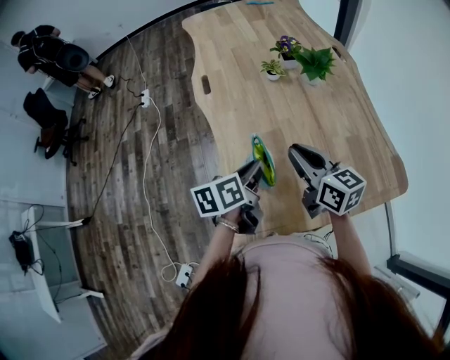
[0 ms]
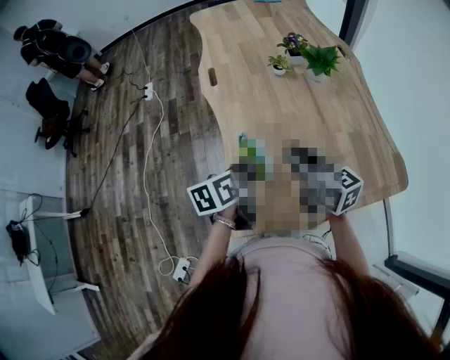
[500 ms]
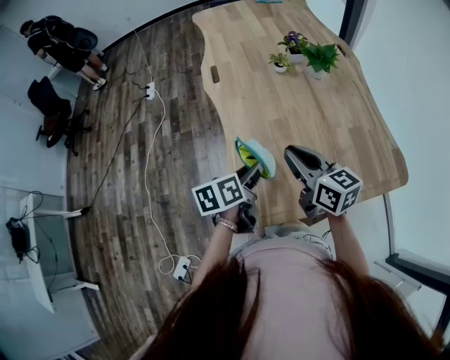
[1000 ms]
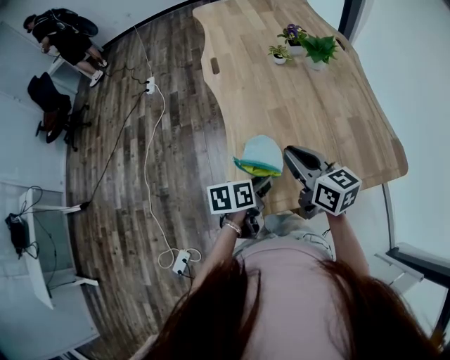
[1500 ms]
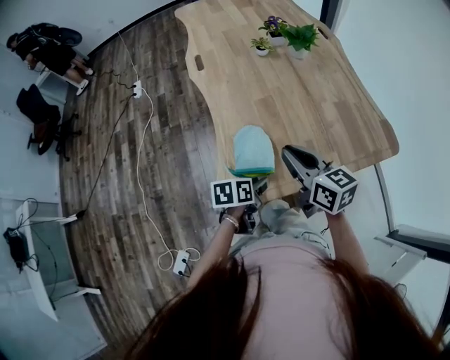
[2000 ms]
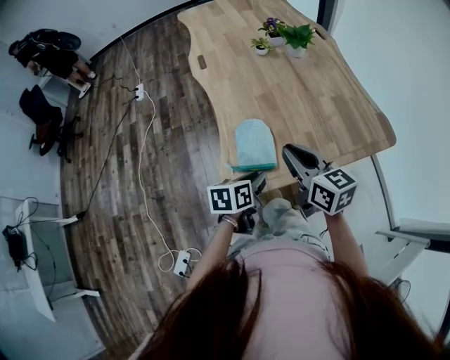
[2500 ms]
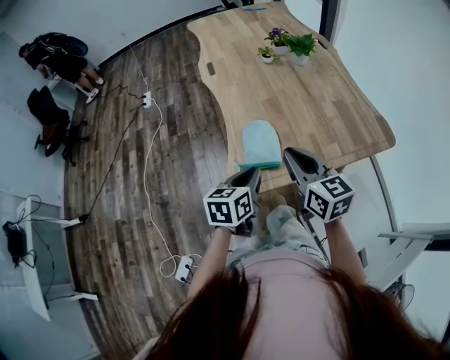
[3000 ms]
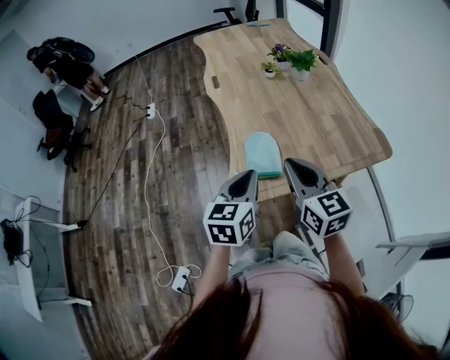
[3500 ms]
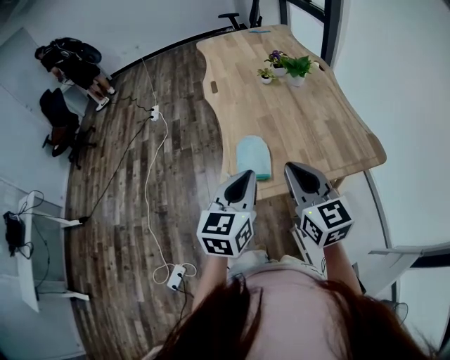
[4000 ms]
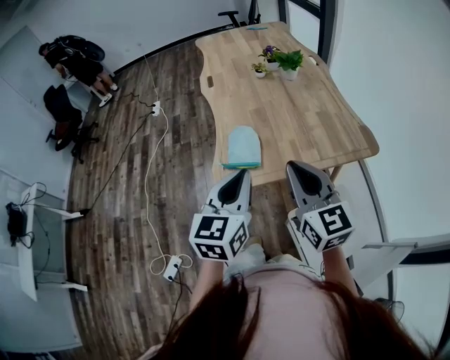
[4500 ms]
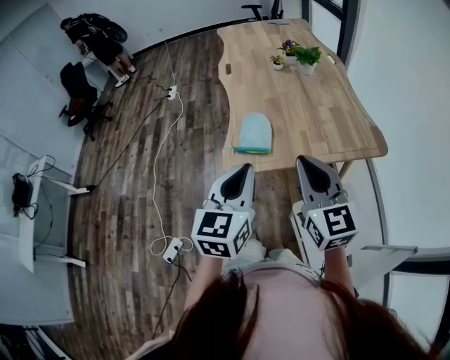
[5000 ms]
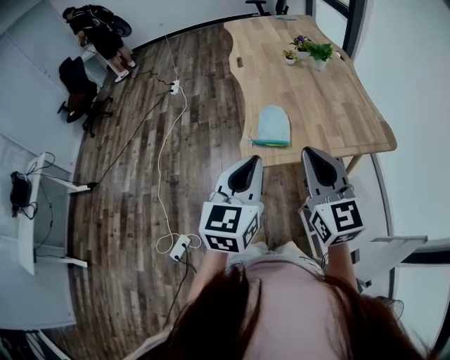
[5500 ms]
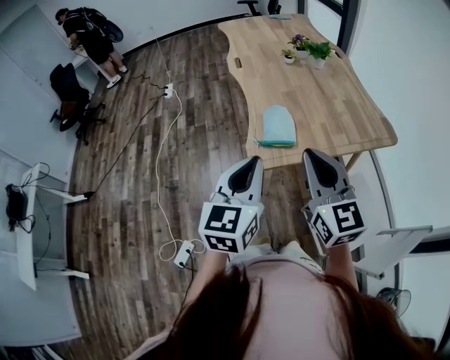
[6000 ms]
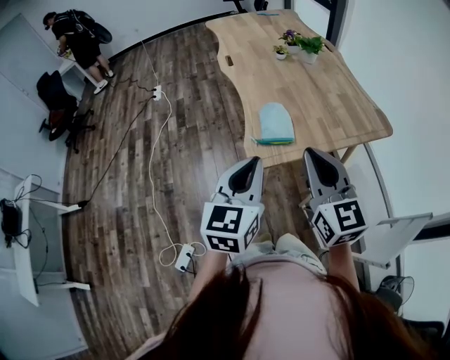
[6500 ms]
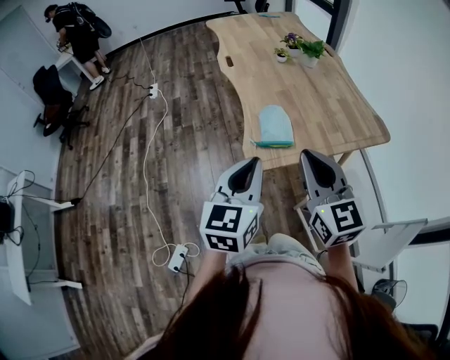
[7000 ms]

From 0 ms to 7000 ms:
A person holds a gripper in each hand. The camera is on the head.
From 0 ms to 2000 ms: The right gripper travels backward by about 15 cm. The left gripper heads backward and downward, covering approximately 20 cm, changes its angle by approximately 20 degrees, and opens its fingers.
From 2000 ms to 3500 ms: The left gripper is displaced upward by roughly 20 cm, changes its angle by approximately 50 degrees, and closes its fingers, while the right gripper shifts approximately 15 cm backward and upward, and swivels approximately 20 degrees.
From 3500 ms to 5000 ms: The left gripper is displaced backward, upward and to the right by roughly 20 cm. The right gripper travels backward, to the right and upward by about 15 cm.
From 5000 ms to 7000 ms: Both grippers move to the left, roughly 15 cm.

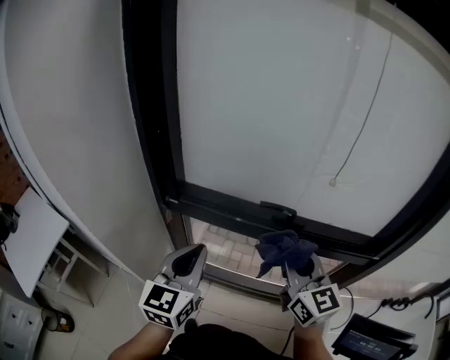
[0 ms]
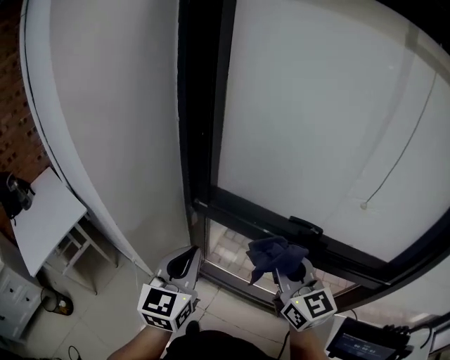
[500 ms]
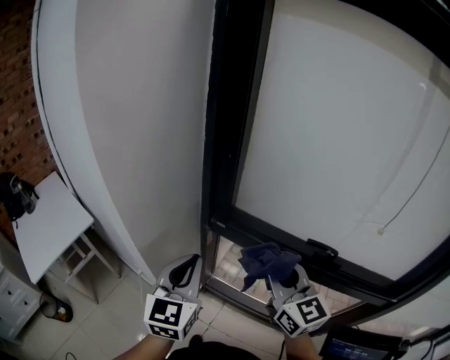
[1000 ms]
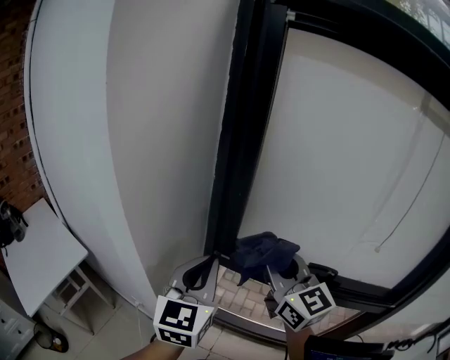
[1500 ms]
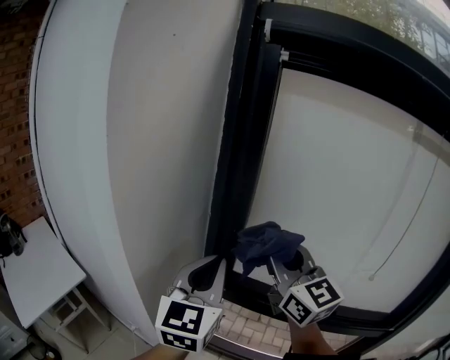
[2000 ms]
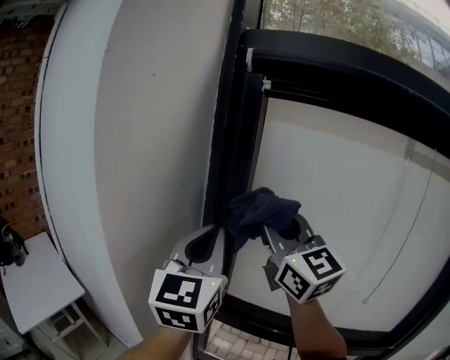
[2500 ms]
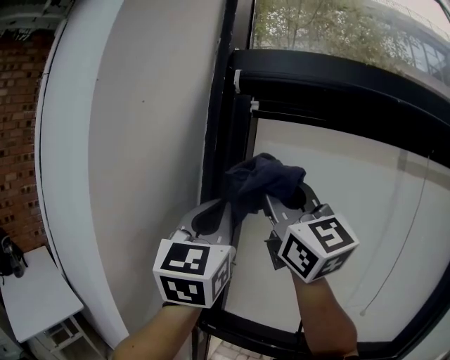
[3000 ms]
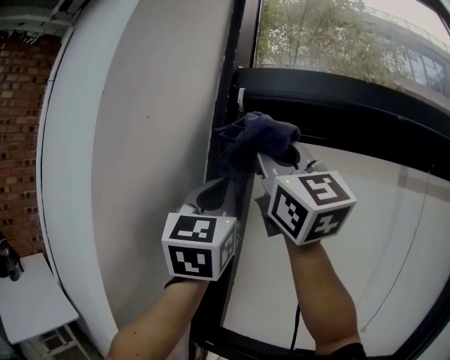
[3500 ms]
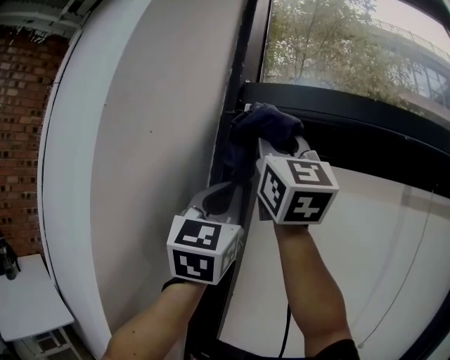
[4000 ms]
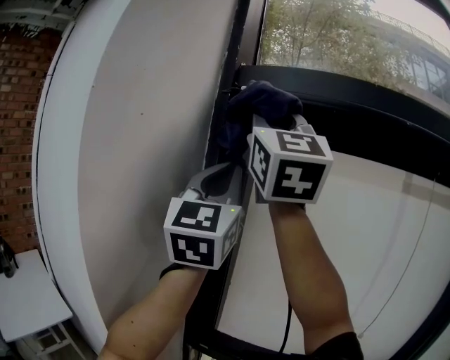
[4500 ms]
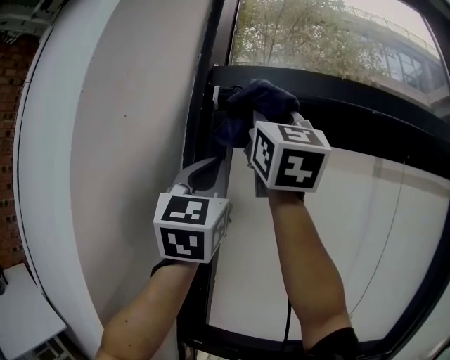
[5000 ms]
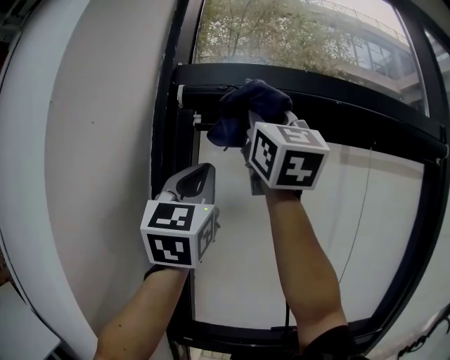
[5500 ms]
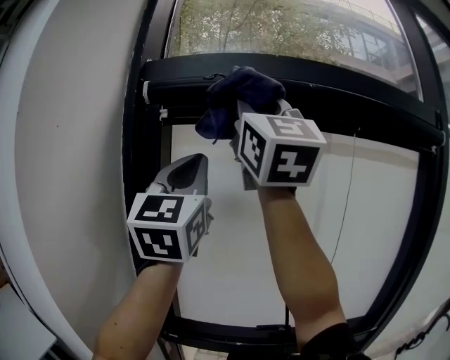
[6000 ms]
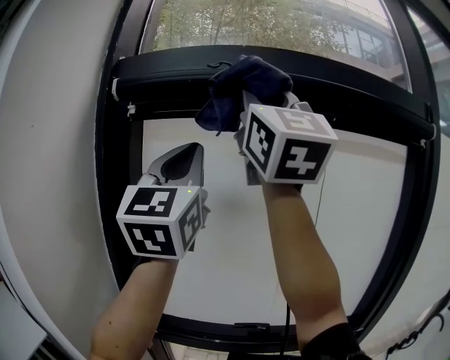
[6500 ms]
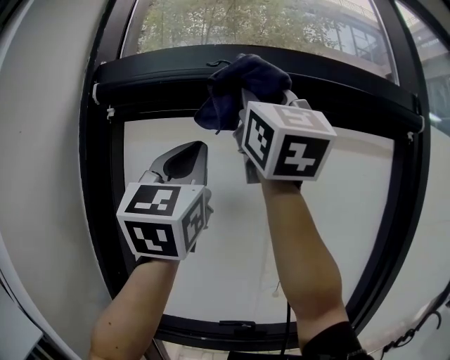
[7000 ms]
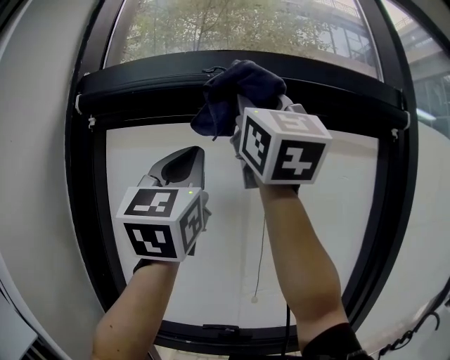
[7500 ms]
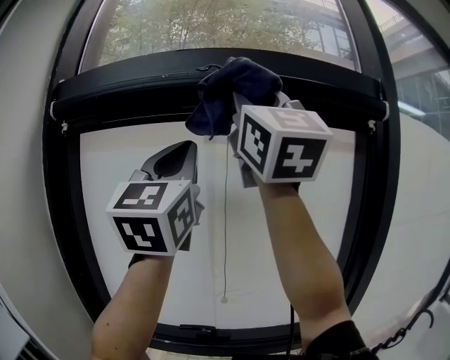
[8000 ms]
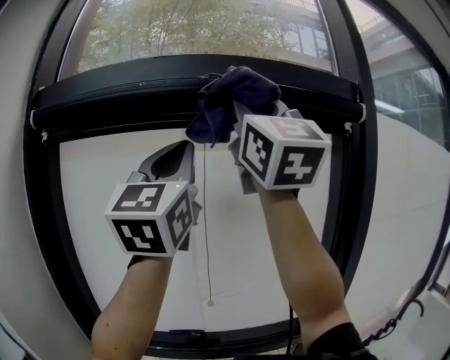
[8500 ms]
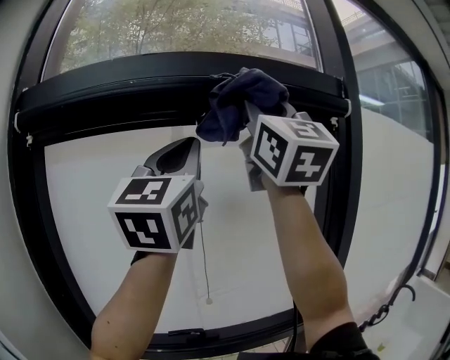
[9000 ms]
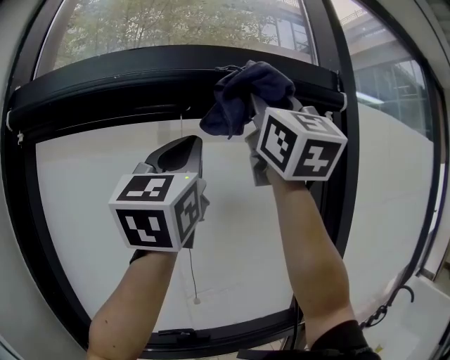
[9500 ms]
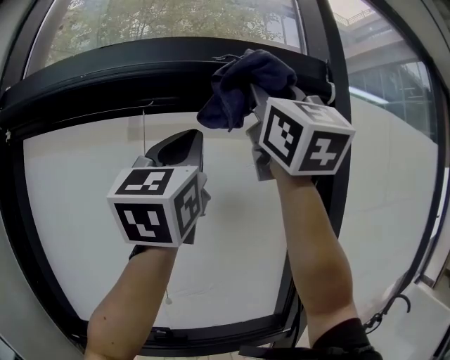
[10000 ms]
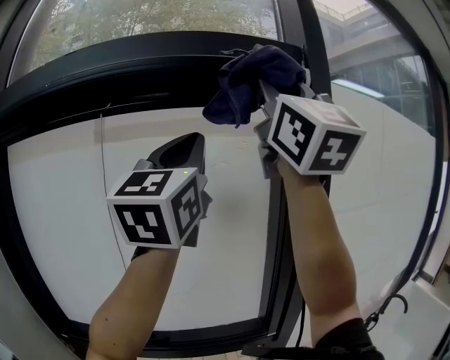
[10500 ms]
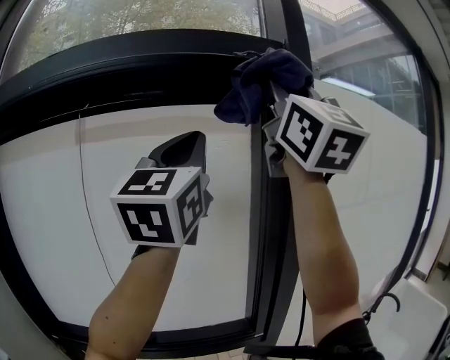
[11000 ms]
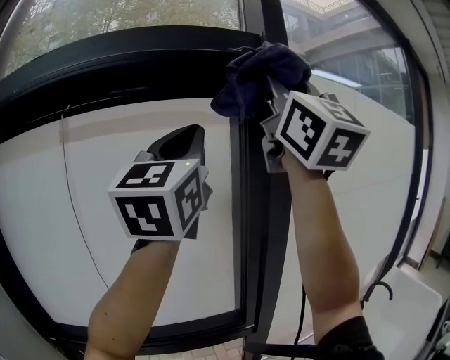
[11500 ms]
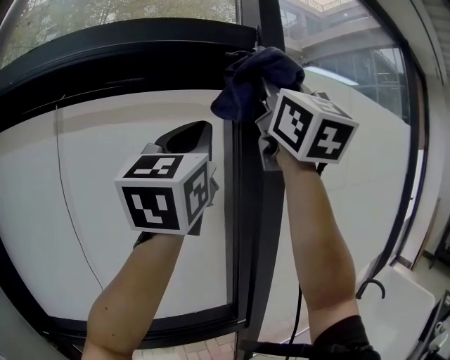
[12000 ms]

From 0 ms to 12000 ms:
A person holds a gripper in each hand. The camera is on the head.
From 0 ms to 2000 ms: The left gripper goes approximately 25 cm upward, to the left and forward. The right gripper is displaced to the left, upward and forward by approximately 35 cm, and swivels roughly 20 degrees.
From 2000 ms to 4000 ms: The grippers both shift upward by some 35 cm. The right gripper rotates some 40 degrees. Meanwhile the left gripper changes its angle by about 30 degrees.
From 4000 ms to 6000 ms: The two grippers go roughly 15 cm to the right.
From 6000 ms to 8000 ms: The grippers both shift to the right by about 25 cm.
From 8000 ms to 10000 ms: The two grippers go about 20 cm to the right.
From 10000 ms to 12000 ms: Both grippers move to the right, roughly 15 cm.

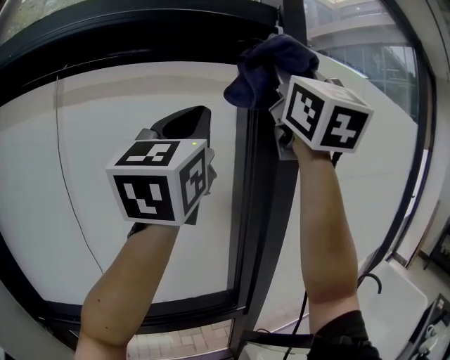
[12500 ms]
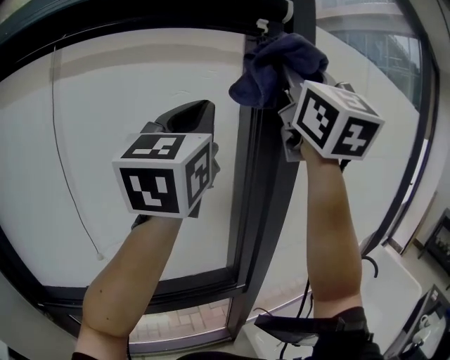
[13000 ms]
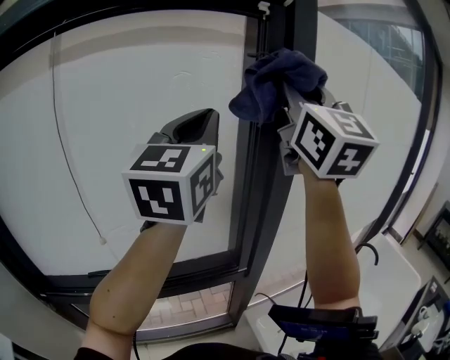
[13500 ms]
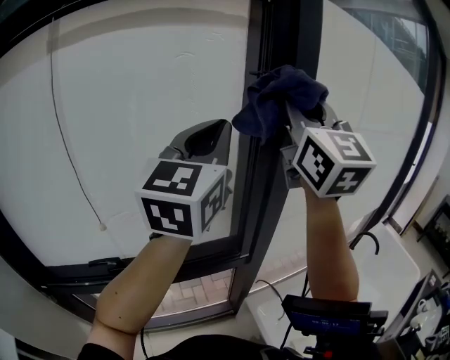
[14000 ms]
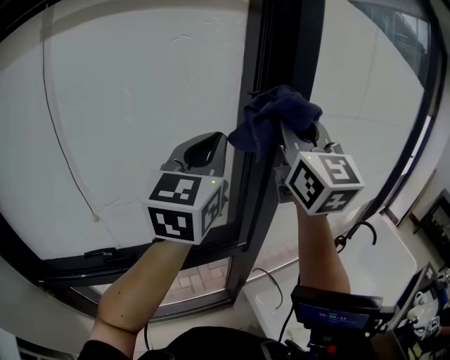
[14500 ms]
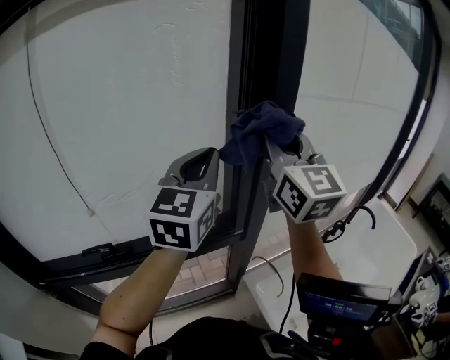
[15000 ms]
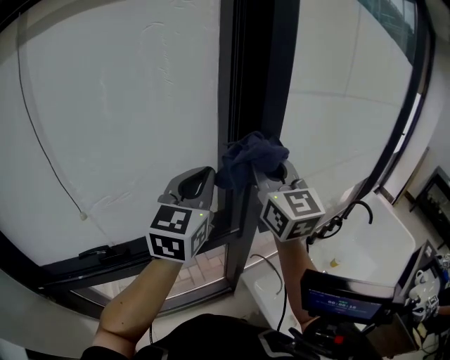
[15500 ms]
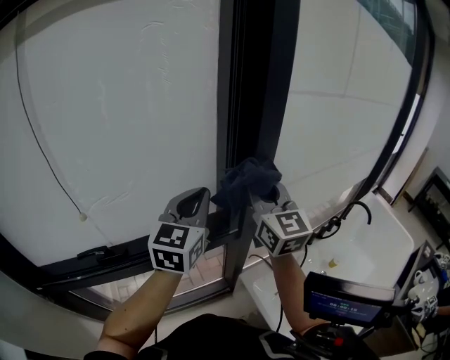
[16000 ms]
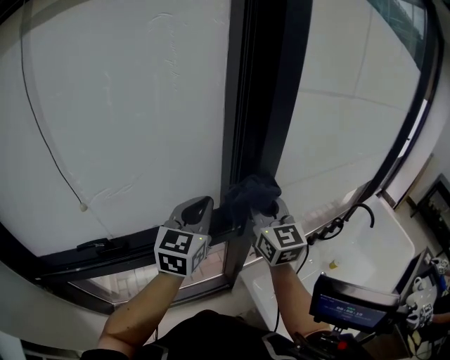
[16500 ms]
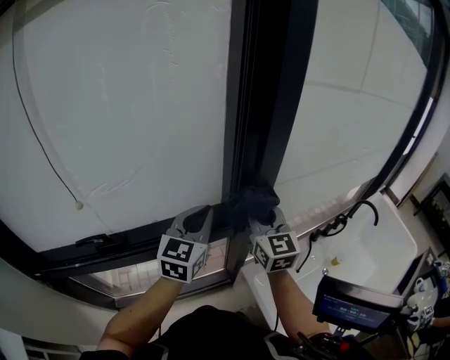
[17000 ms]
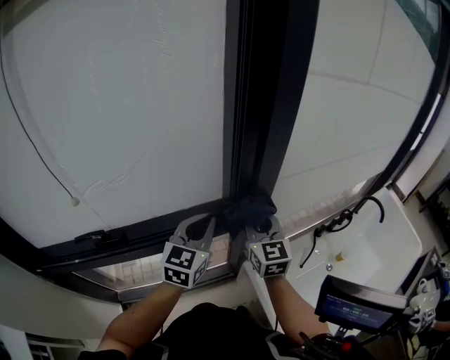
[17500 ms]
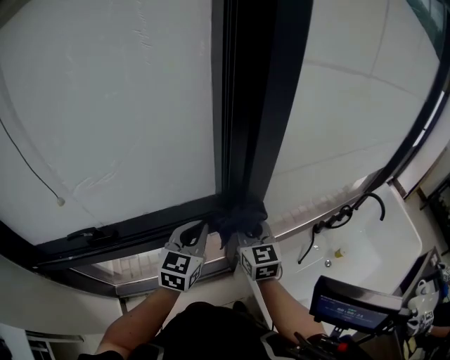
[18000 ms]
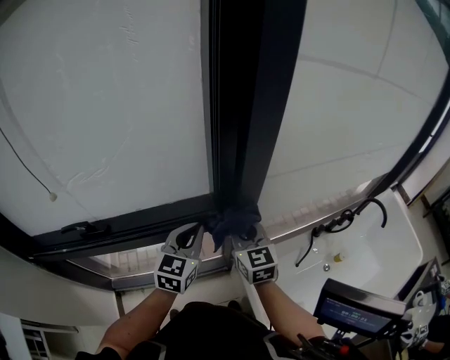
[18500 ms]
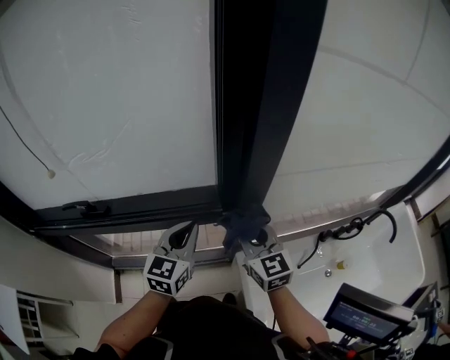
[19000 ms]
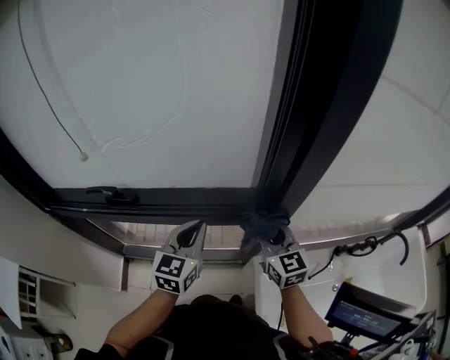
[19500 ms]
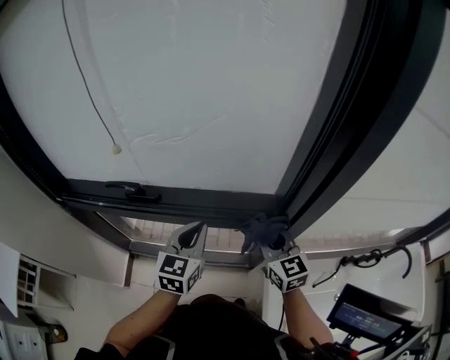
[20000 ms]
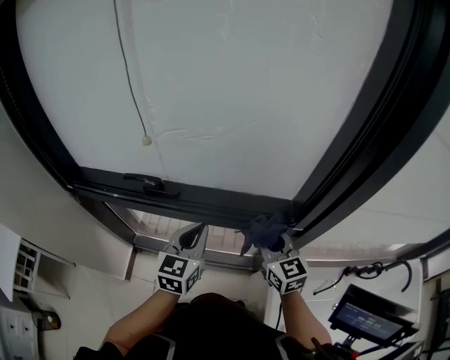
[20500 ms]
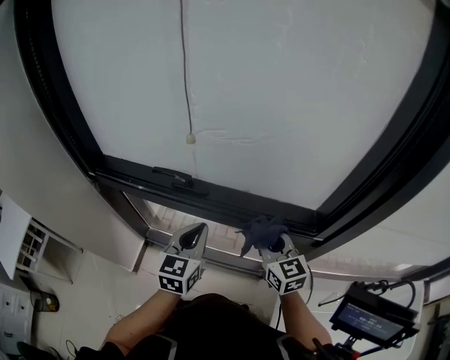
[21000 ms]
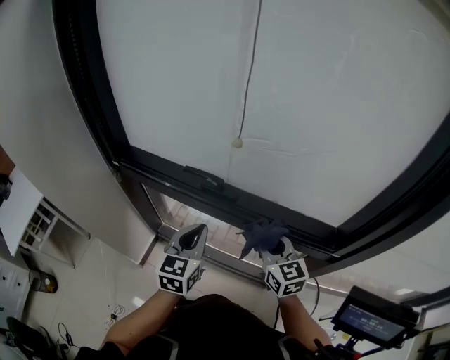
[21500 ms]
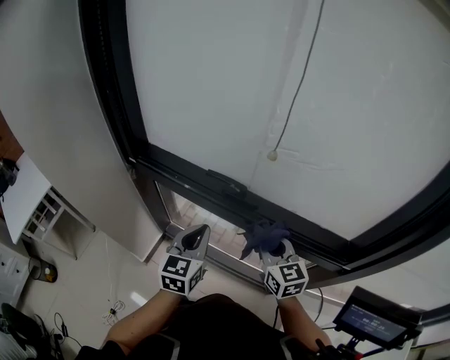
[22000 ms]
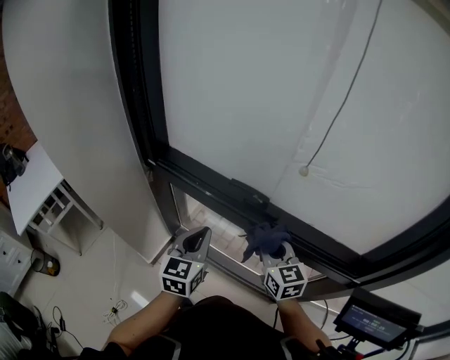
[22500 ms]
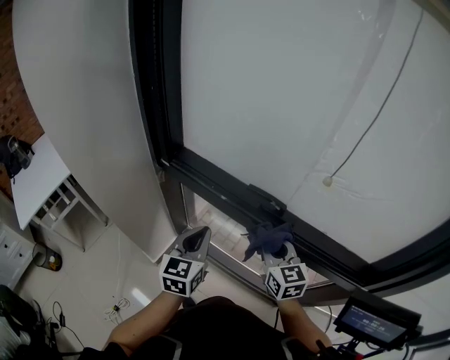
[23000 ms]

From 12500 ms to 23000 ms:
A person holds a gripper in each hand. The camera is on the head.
From 12500 ms to 14500 ms: Both grippers travel together downward, about 25 cm.
From 14500 ms to 16500 ms: Both grippers move downward, some 25 cm.
From 16500 ms to 19000 ms: The two grippers go about 20 cm downward. The right gripper turns by roughly 30 degrees.
From 19000 ms to 21000 ms: Both grippers move to the left, some 25 cm. The left gripper turns by roughly 20 degrees, while the right gripper changes its angle by about 20 degrees.
From 21000 ms to 23000 ms: The left gripper moves to the left, about 20 cm. Meanwhile the right gripper moves to the left and forward, roughly 20 cm.
